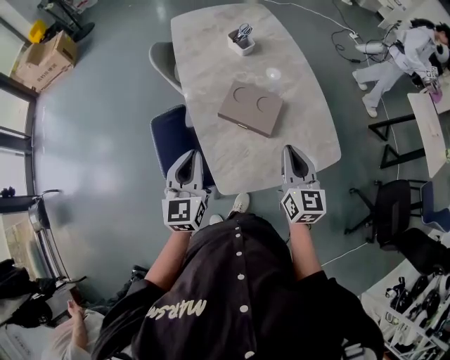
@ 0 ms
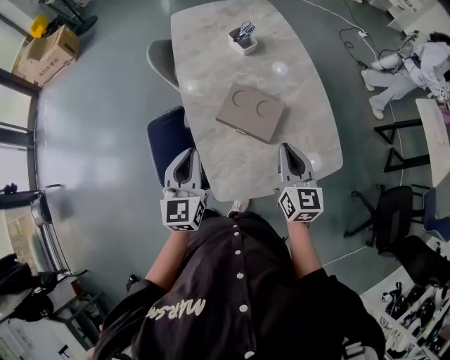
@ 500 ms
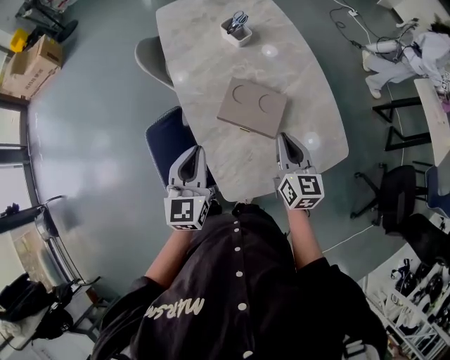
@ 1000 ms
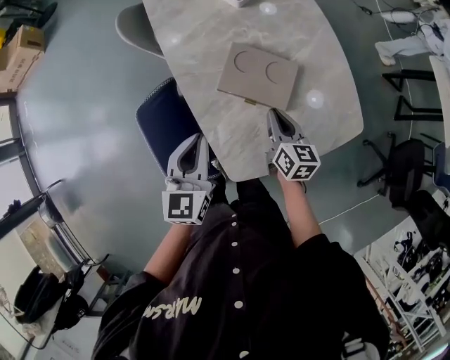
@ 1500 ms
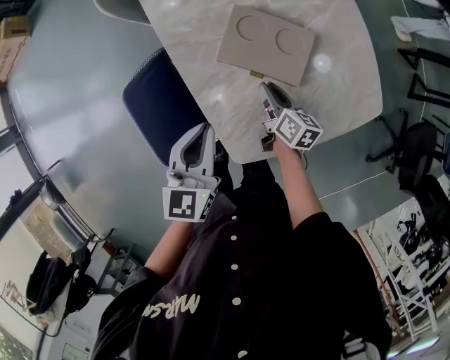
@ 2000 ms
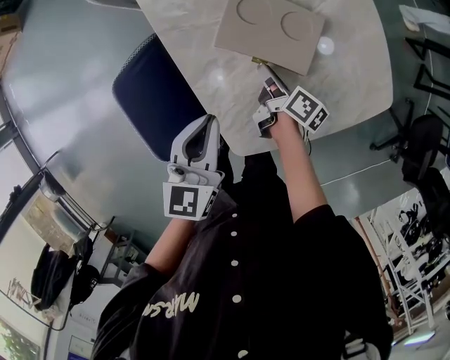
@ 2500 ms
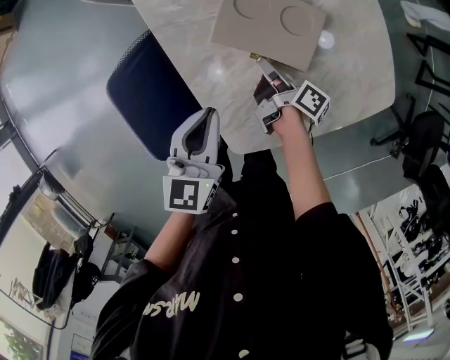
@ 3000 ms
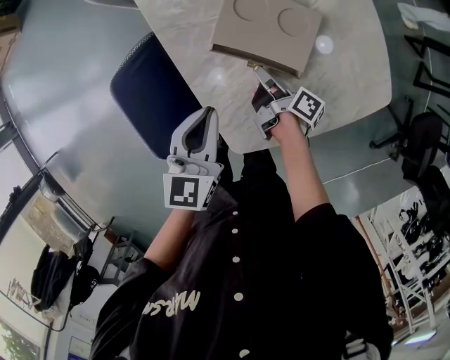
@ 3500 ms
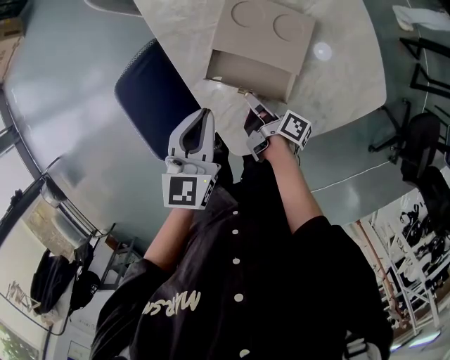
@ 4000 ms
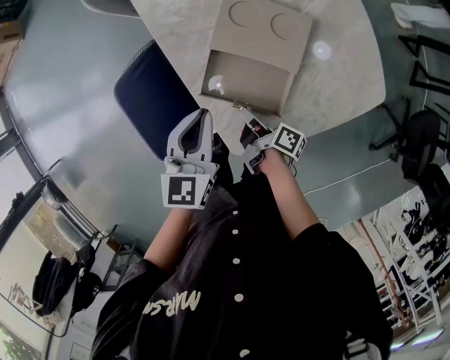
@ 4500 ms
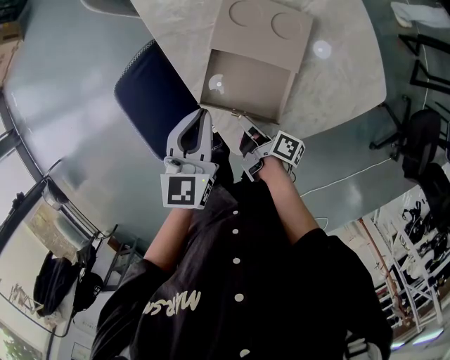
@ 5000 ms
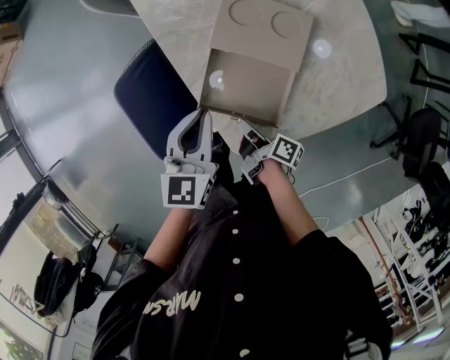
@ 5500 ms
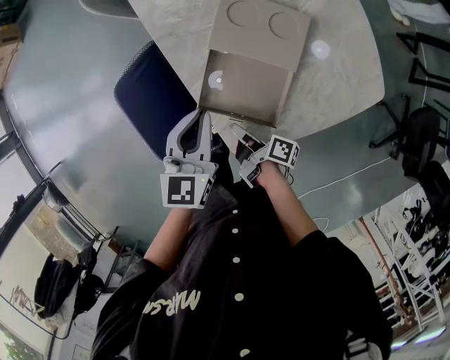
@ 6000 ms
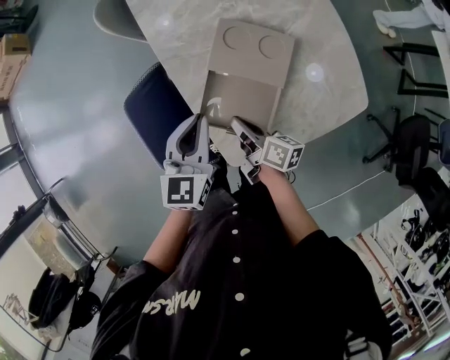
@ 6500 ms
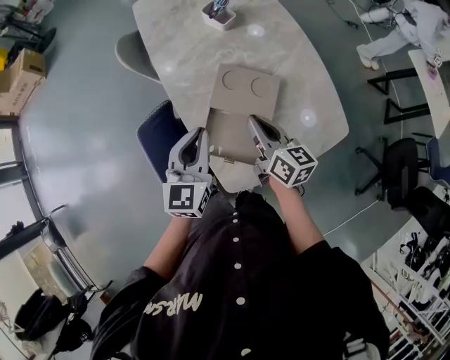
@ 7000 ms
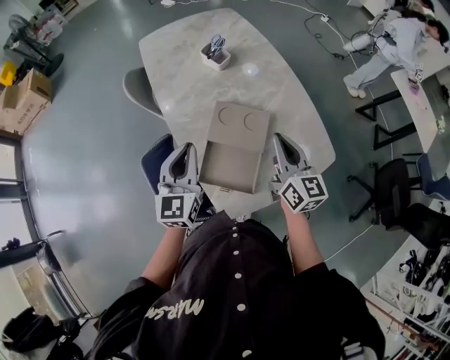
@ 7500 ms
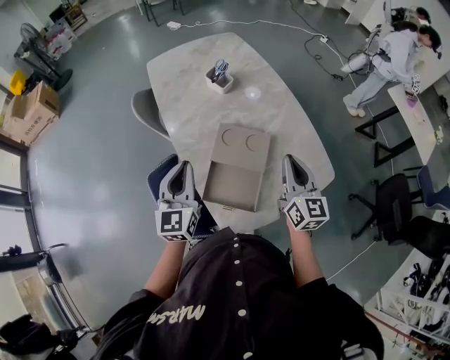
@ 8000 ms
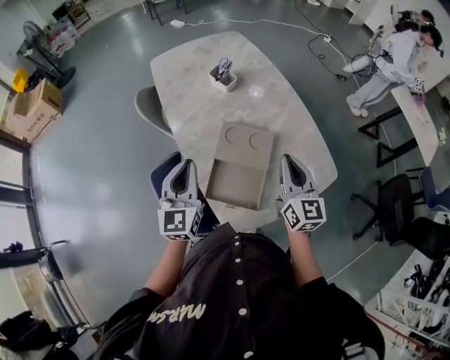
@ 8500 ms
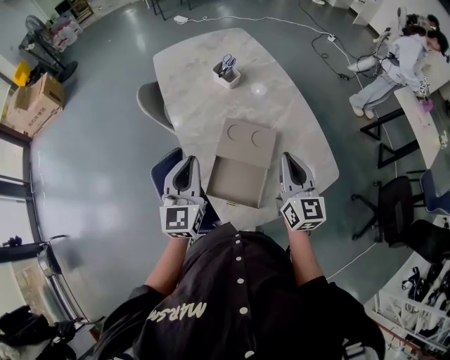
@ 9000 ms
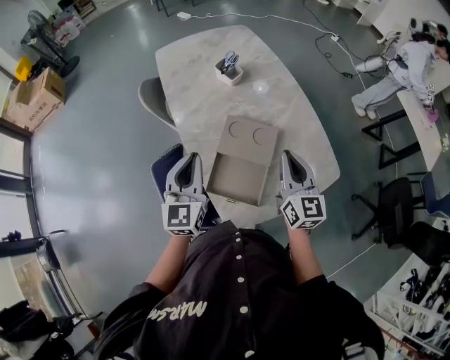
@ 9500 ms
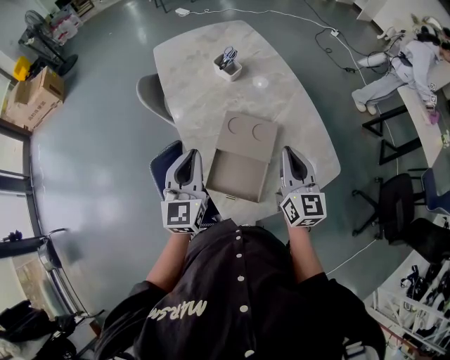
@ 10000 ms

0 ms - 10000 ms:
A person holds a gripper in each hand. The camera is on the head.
0 ms - 2000 ms: The right gripper shifts approximately 30 cm downward and forward, twists about 40 degrees clockwise, seen from behind, and opens its fingers, while the left gripper moves downward and forward, roughly 10 cm.
2000 ms - 4000 ms: The right gripper shifts some 5 cm backward, and rotates around the line of its fingers by some 40 degrees, clockwise from behind.
4000 ms - 6000 ms: The right gripper heads backward and to the left, covering roughly 10 cm.
6000 ms - 8000 ms: The left gripper goes approximately 15 cm upward, and changes its angle by roughly 20 degrees. Meanwhile the right gripper goes about 40 cm upward and to the right, and rolls counterclockwise, seen from behind, by roughly 80 degrees.
8000 ms - 10000 ms: The grippers move only a little.

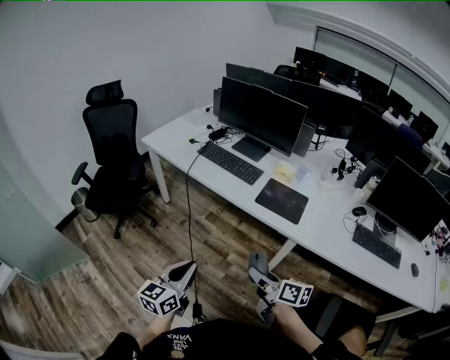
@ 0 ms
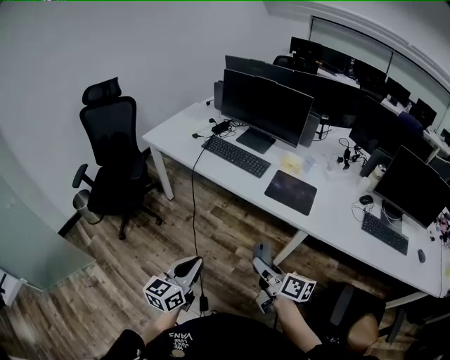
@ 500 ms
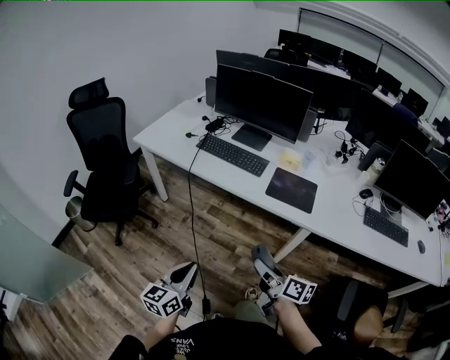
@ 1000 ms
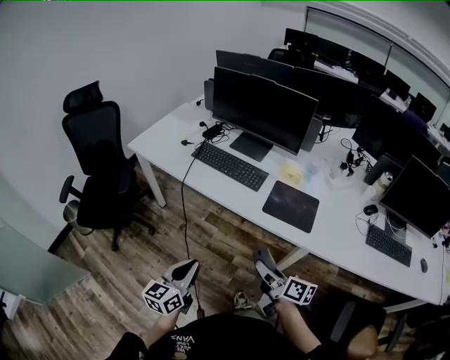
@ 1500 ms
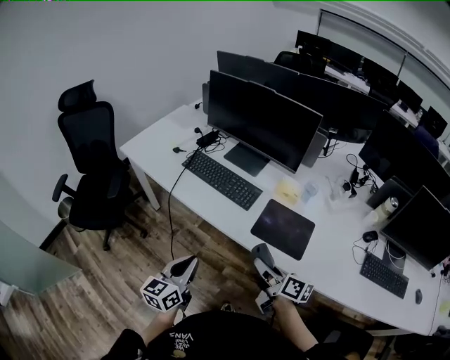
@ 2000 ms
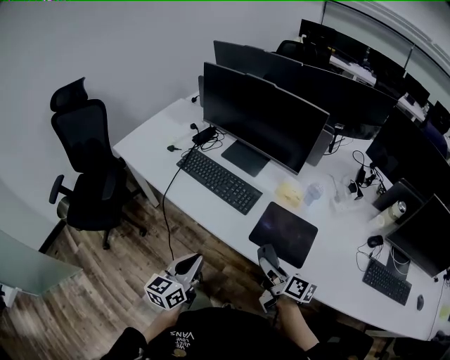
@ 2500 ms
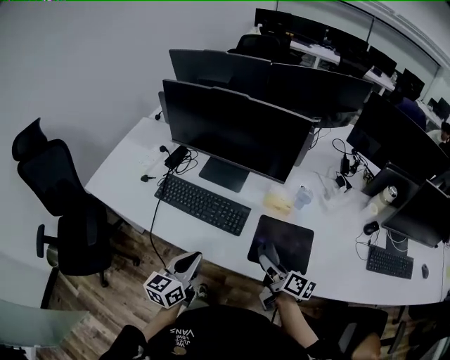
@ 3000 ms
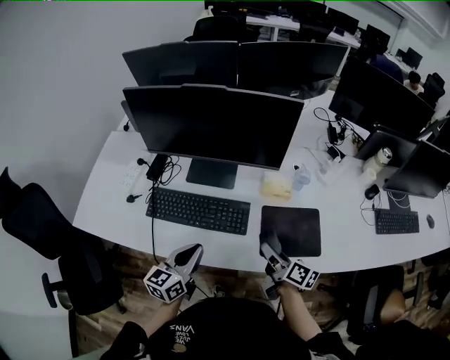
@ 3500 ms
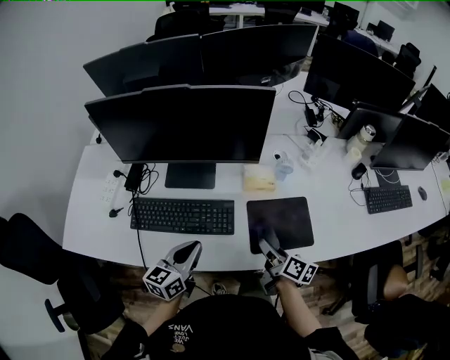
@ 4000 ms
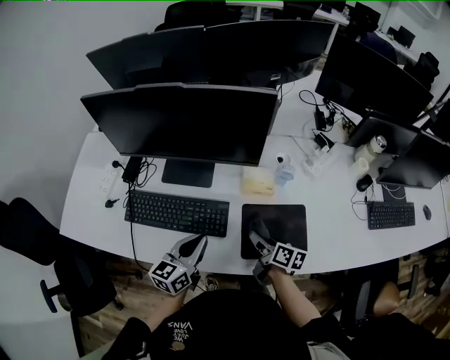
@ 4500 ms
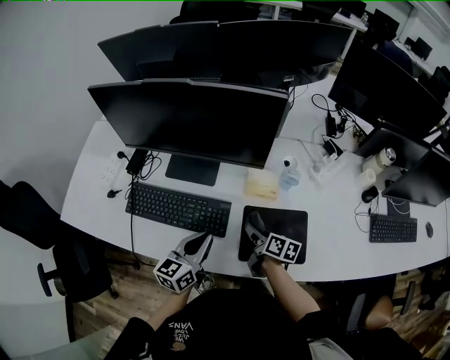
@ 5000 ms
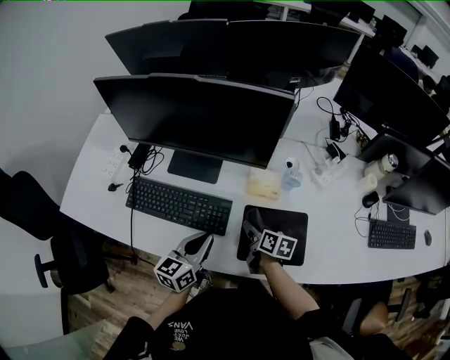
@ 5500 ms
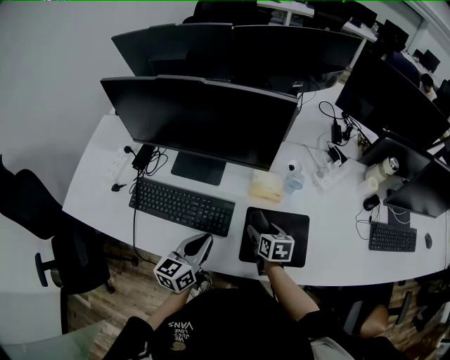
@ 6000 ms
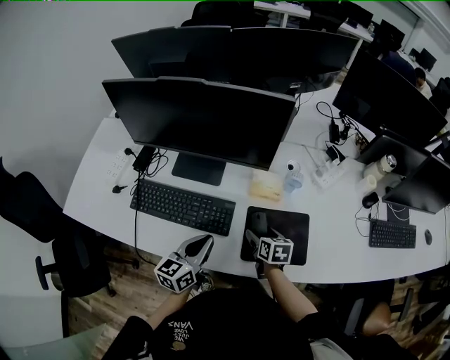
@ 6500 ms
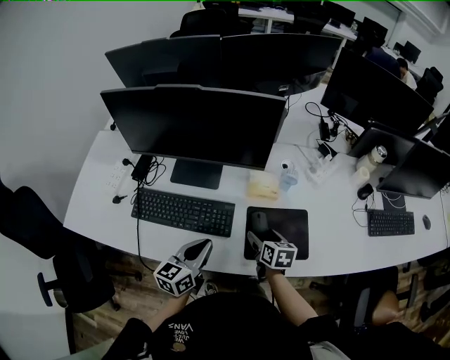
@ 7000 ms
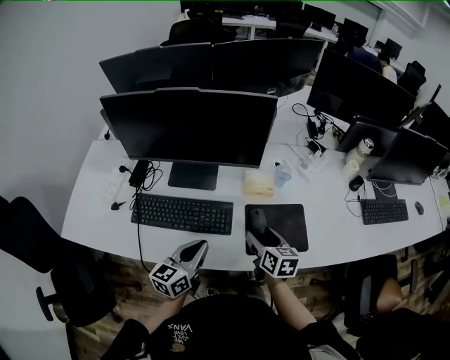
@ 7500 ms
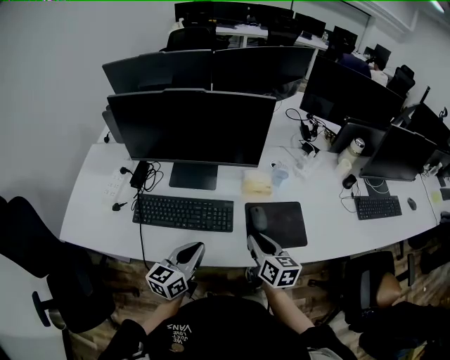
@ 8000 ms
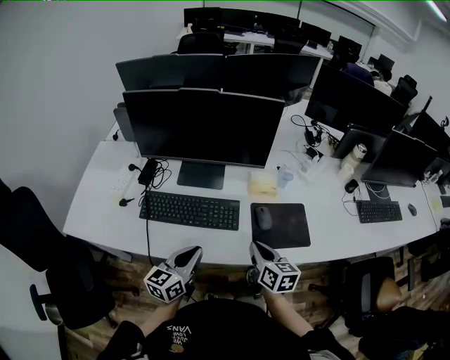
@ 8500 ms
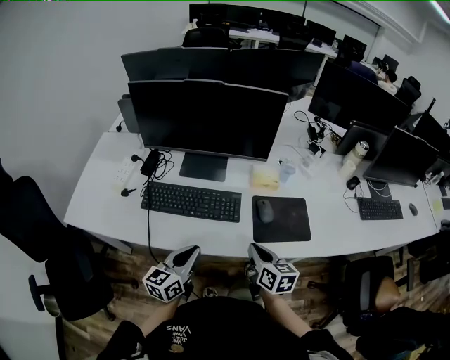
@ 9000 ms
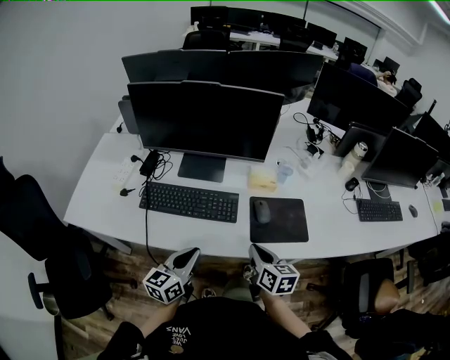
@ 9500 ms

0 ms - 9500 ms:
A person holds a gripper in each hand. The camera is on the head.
0 ms - 2000 ms: The two grippers go some 25 cm forward.
2000 ms - 4000 ms: The right gripper shifts by approximately 20 cm, and swivels approximately 40 degrees. Meanwhile the left gripper shifts by some 30 cm, and swivels approximately 40 degrees.
4000 ms - 5500 ms: The left gripper heads to the right, covering roughly 5 cm. The right gripper heads forward and downward, covering roughly 10 cm, and swivels about 30 degrees.
5500 ms - 7500 ms: The right gripper goes some 10 cm upward and backward, and turns by approximately 20 degrees, while the left gripper moves some 5 cm.
7500 ms - 9500 ms: The grippers both shift backward by roughly 10 cm. The right gripper closes.

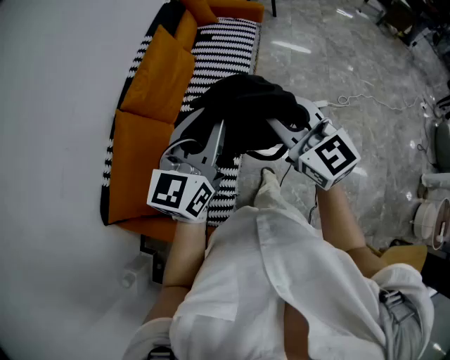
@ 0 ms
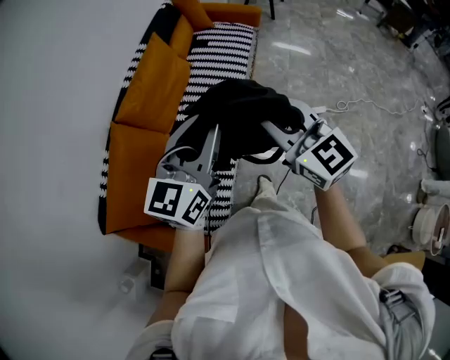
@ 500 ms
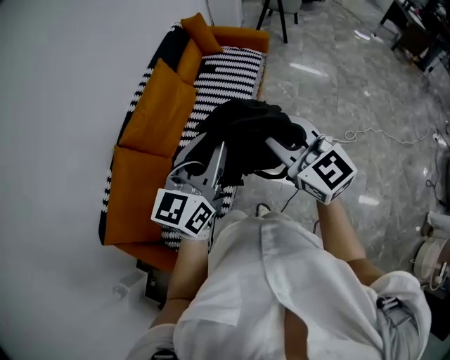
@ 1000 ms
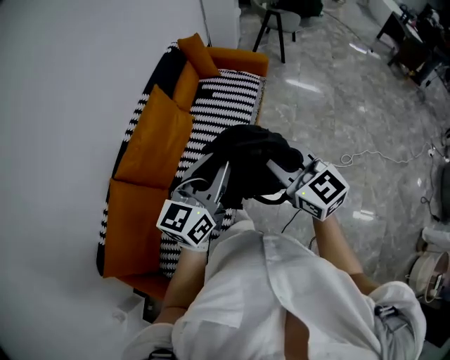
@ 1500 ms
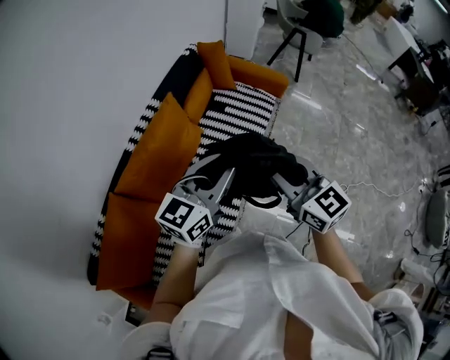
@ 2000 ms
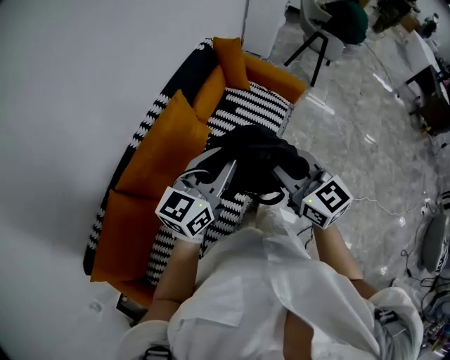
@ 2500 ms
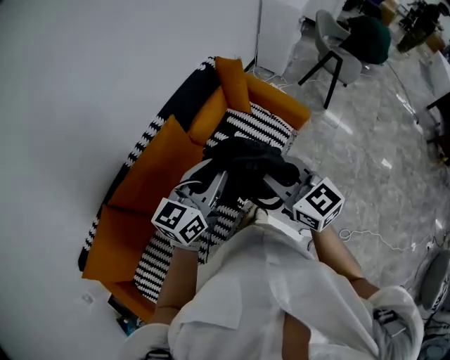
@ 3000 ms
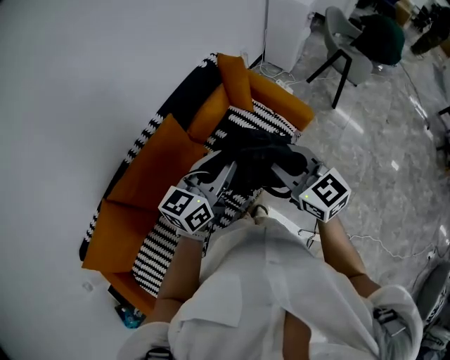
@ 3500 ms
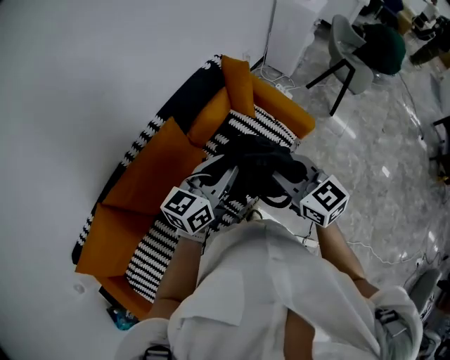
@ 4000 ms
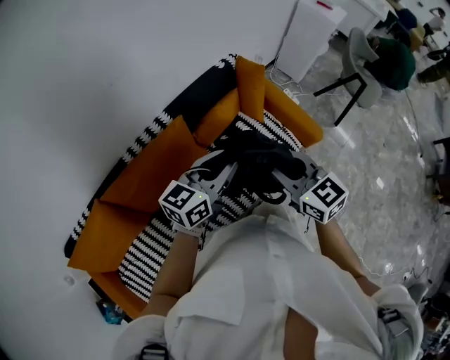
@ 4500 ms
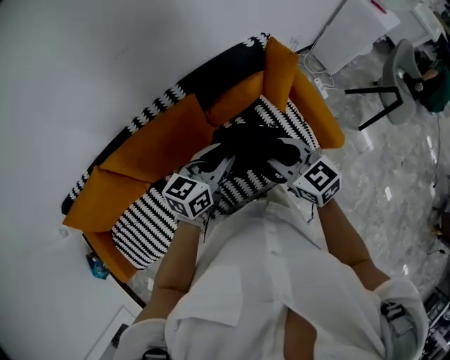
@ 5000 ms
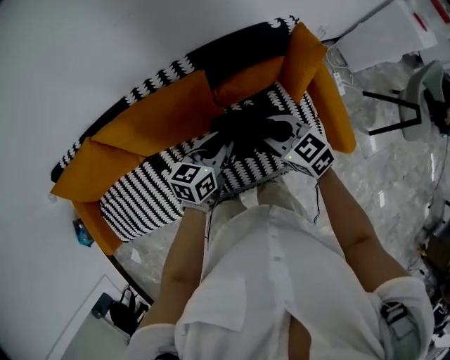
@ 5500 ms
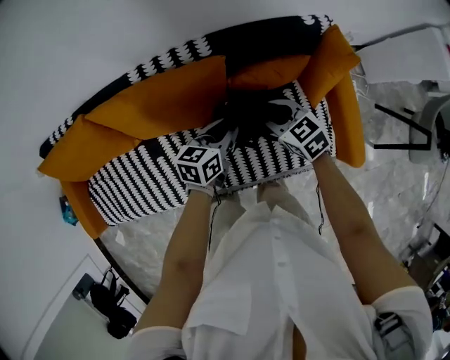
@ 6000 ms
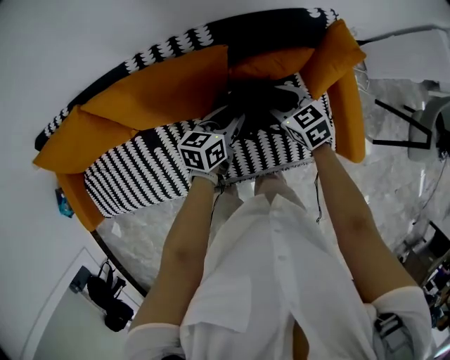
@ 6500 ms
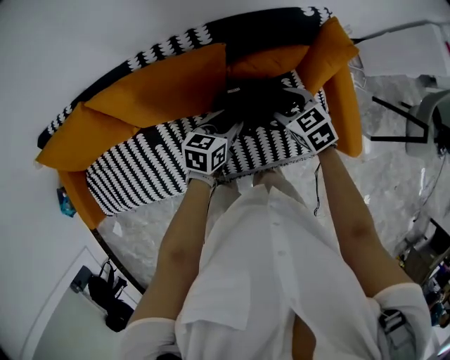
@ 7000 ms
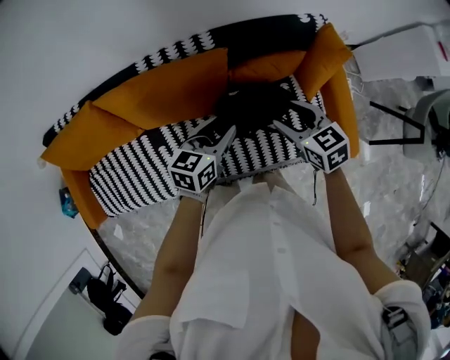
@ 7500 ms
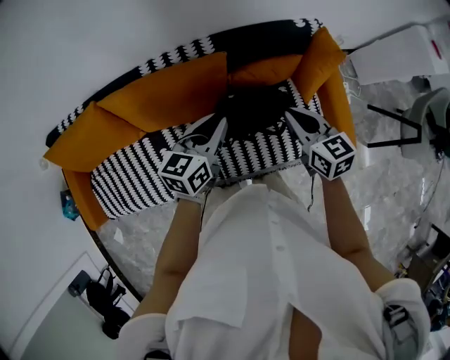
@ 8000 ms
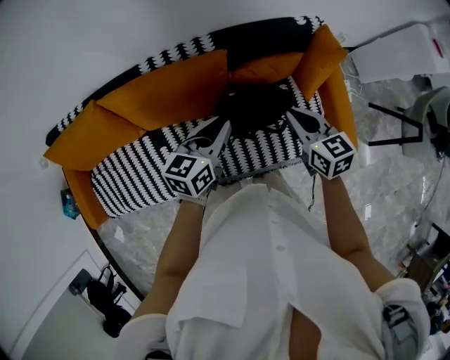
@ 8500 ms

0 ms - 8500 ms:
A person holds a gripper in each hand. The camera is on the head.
0 ms - 2000 ms: Both grippers move forward, roughly 35 cm.
2000 ms - 4000 ms: The two grippers go approximately 30 cm forward and to the right. The right gripper swivels about 20 degrees.
4000 ms - 6500 ms: Both grippers move downward, some 30 cm. The right gripper changes its angle by approximately 50 degrees, and opens; the left gripper swivels approximately 50 degrees.
6500 ms - 8500 ms: The right gripper moves upward and backward, about 15 cm, changes its angle by some 20 degrees, and closes, while the left gripper travels upward by about 15 cm.
